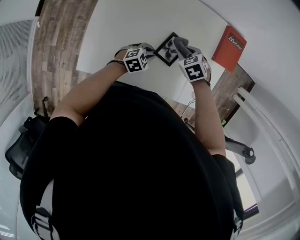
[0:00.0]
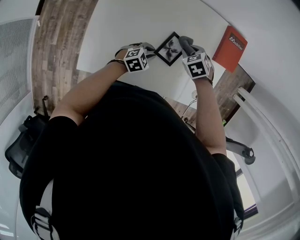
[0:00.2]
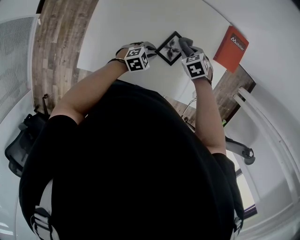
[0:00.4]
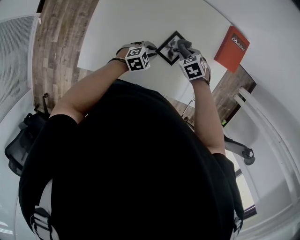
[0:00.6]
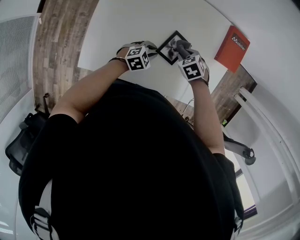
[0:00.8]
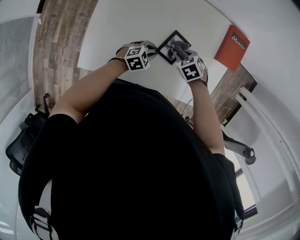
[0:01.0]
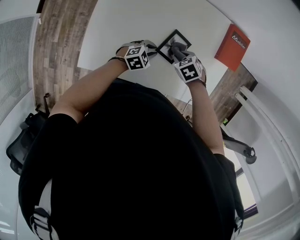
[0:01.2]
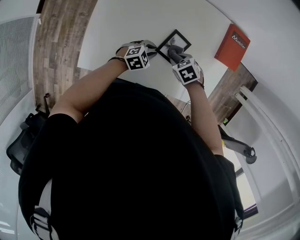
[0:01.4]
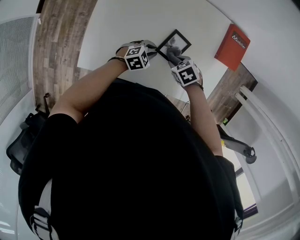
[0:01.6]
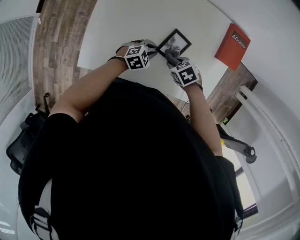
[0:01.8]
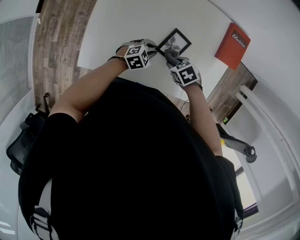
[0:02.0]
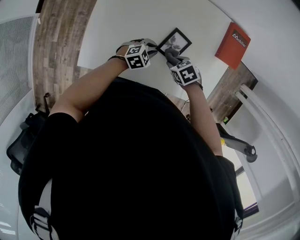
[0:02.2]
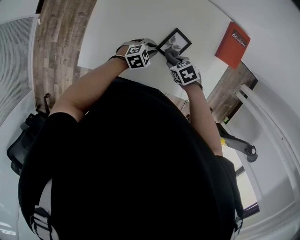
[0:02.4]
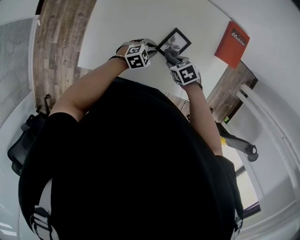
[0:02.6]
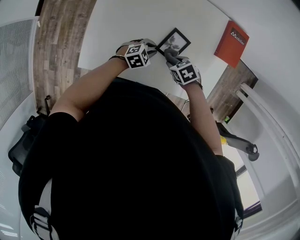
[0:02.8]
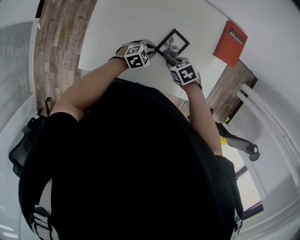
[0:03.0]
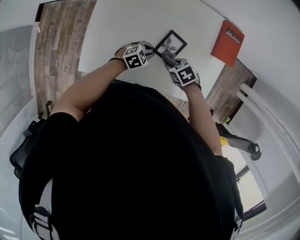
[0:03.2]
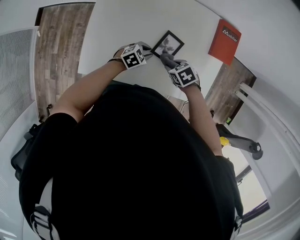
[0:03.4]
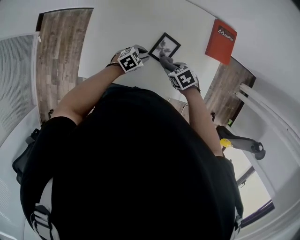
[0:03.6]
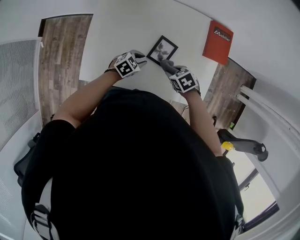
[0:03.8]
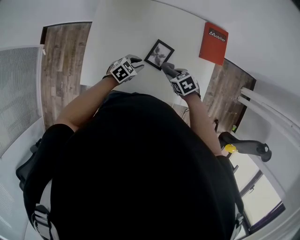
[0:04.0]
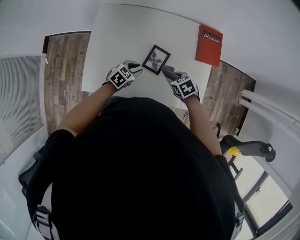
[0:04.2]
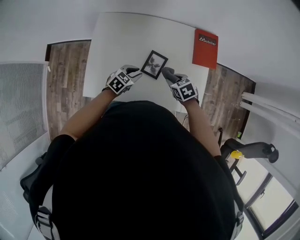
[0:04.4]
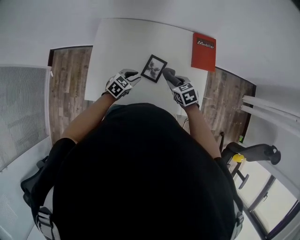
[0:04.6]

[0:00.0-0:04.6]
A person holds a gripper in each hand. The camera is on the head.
0:00.0 to 0:01.6: The right gripper ends up approximately 10 cm from where it was.
0:01.6 to 0:03.0: The grippers make only small movements.
0:03.0 to 0:04.6: The grippers both shift upward by approximately 10 cm. The right gripper rotates about 30 degrees.

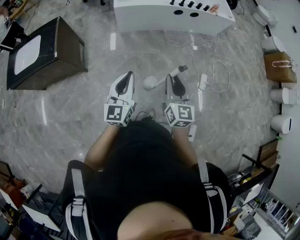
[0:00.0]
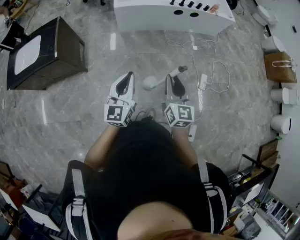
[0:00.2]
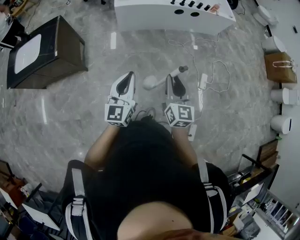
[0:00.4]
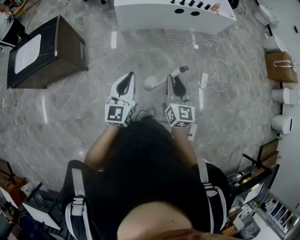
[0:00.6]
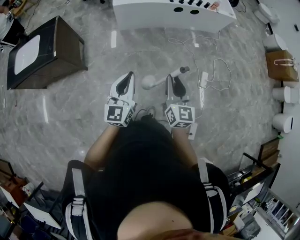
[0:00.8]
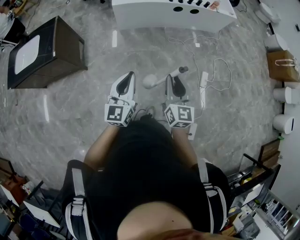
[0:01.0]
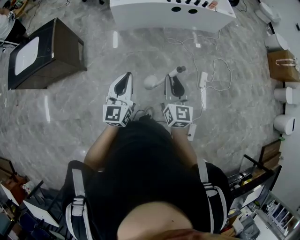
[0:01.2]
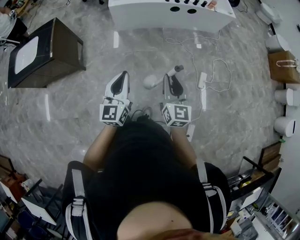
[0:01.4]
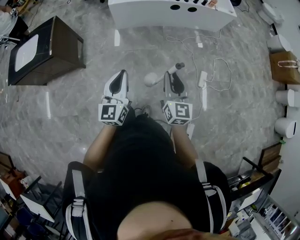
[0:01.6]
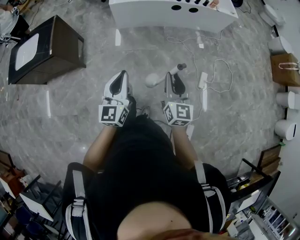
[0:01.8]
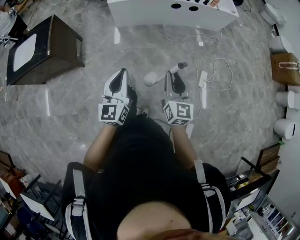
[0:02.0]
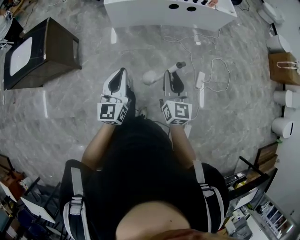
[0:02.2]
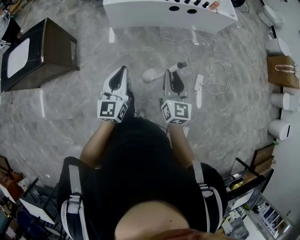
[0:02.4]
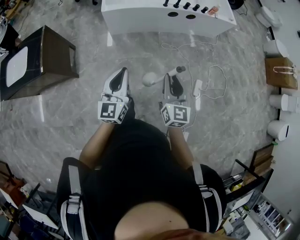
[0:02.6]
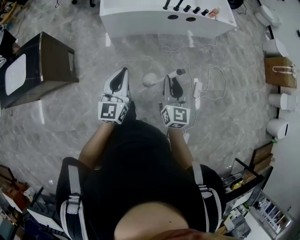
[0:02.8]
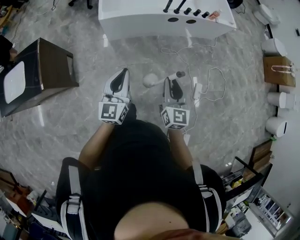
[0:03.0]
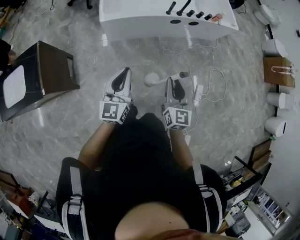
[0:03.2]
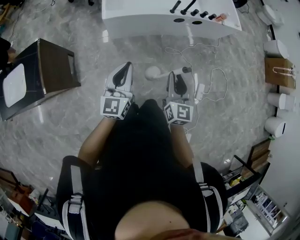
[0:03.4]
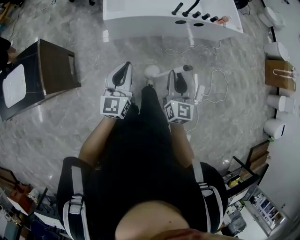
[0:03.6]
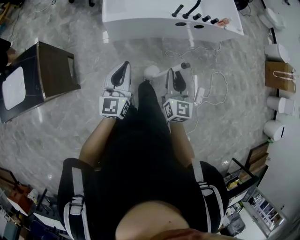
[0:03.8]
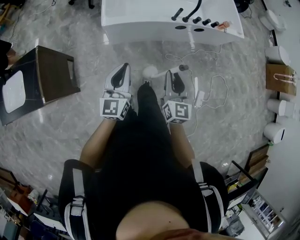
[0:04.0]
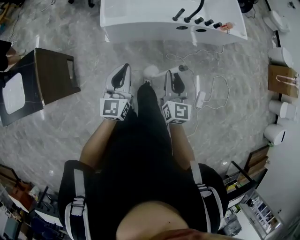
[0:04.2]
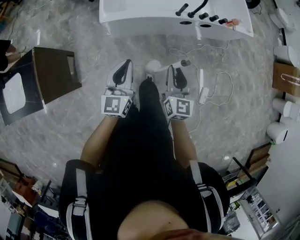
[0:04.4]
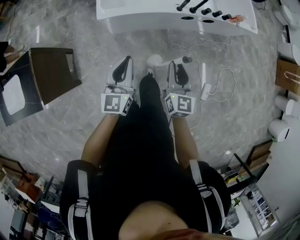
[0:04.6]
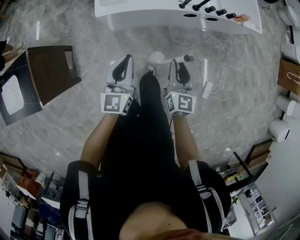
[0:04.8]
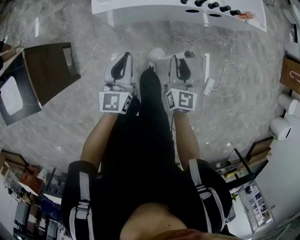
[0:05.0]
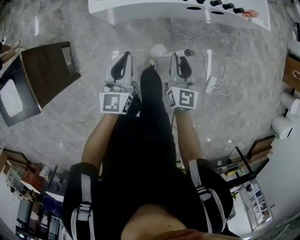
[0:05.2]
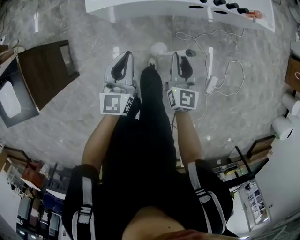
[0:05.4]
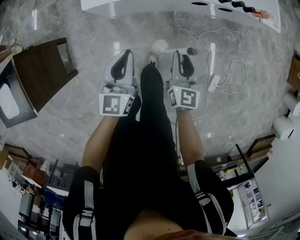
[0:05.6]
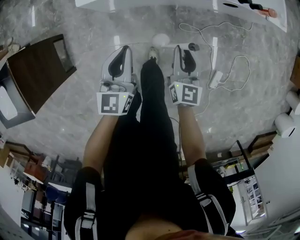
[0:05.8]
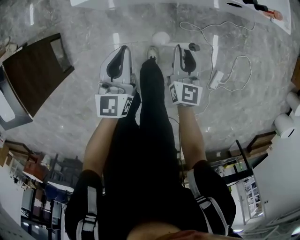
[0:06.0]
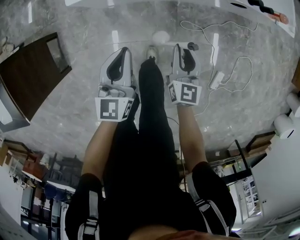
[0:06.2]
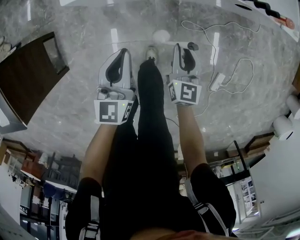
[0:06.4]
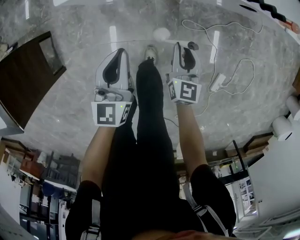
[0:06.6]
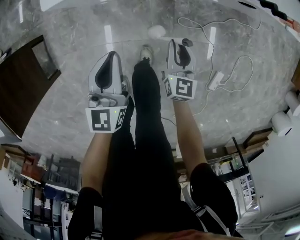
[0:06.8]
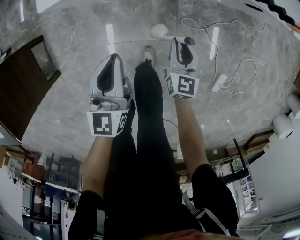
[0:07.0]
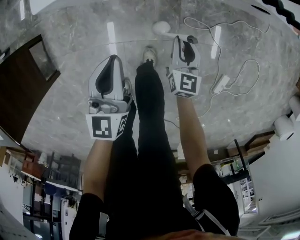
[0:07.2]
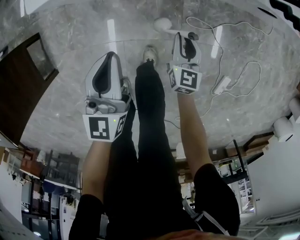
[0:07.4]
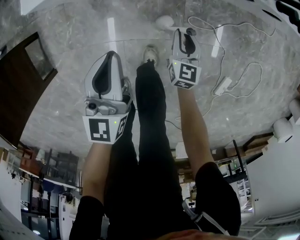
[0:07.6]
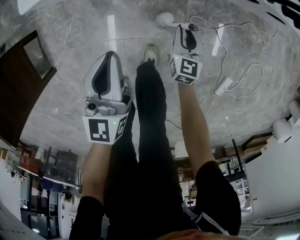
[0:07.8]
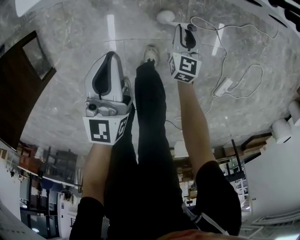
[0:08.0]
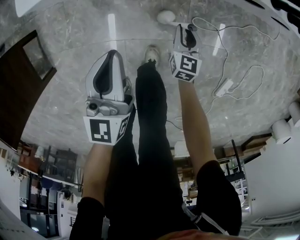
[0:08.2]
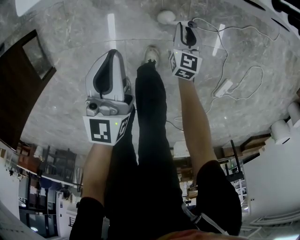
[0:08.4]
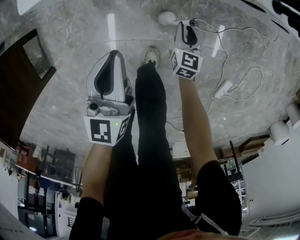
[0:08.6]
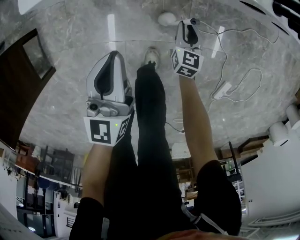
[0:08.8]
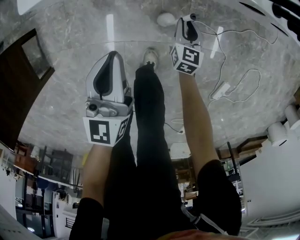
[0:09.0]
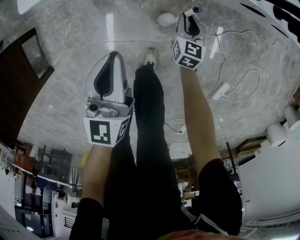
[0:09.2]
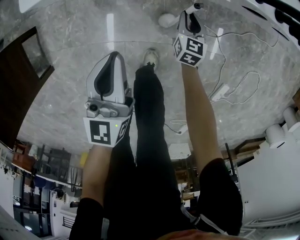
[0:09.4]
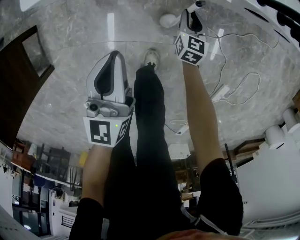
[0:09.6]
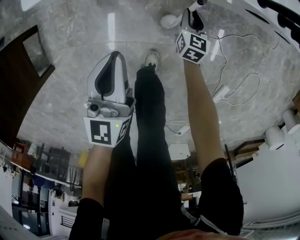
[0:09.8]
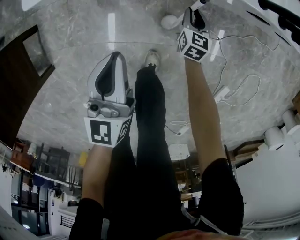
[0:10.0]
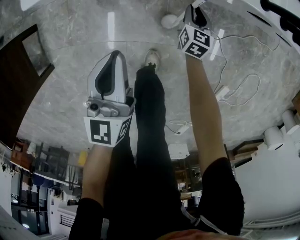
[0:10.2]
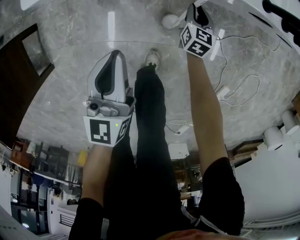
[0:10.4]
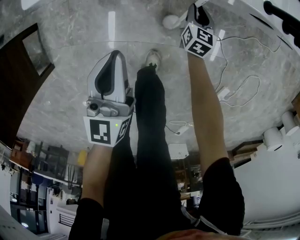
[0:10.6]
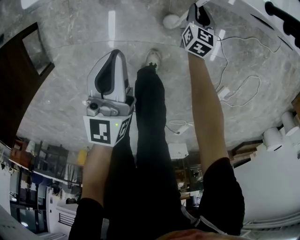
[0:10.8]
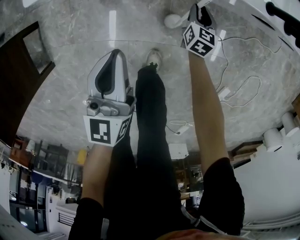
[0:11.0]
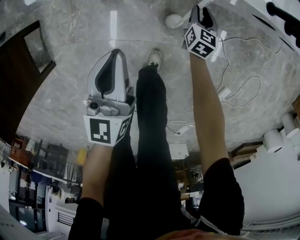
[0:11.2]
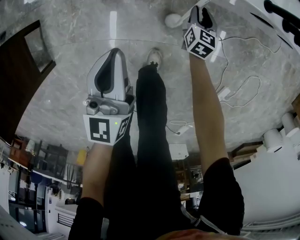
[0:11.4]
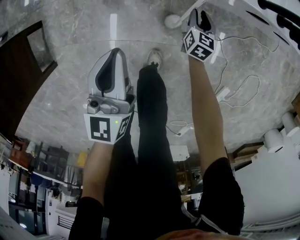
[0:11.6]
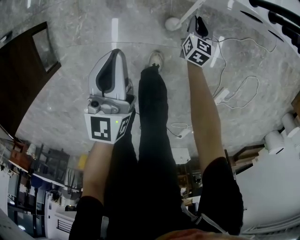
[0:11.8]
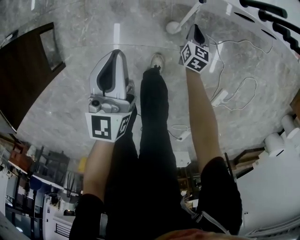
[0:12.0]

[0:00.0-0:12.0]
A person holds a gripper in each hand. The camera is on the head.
0:00.0 to 0:01.6: Both grippers move to the right, roughly 10 cm.
0:01.6 to 0:03.0: The two grippers go about 25 cm forward.
0:03.0 to 0:04.4: The grippers both shift forward by roughly 20 cm.
0:04.4 to 0:06.0: Both grippers move downward and forward, about 25 cm.
0:06.0 to 0:07.6: The right gripper shifts approximately 35 cm downward; the left gripper heads downward, covering about 20 cm.
0:07.6 to 0:09.0: The right gripper is displaced downward and forward by some 10 cm.
0:09.0 to 0:10.4: The right gripper is displaced forward by roughly 10 cm.
0:10.4 to 0:12.0: The left gripper shifts approximately 10 cm upward. The right gripper travels upward and backward by about 10 cm.

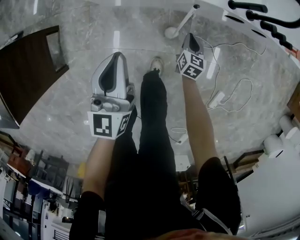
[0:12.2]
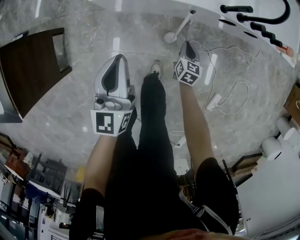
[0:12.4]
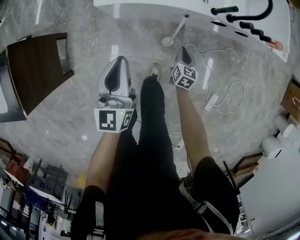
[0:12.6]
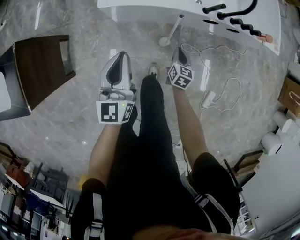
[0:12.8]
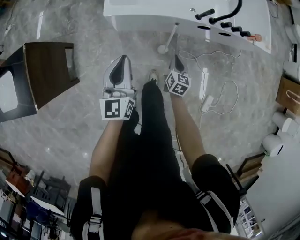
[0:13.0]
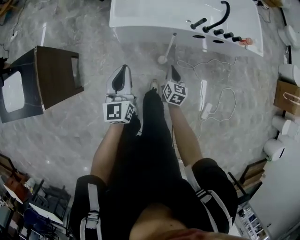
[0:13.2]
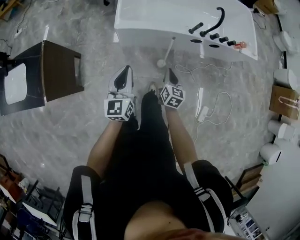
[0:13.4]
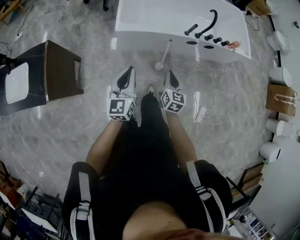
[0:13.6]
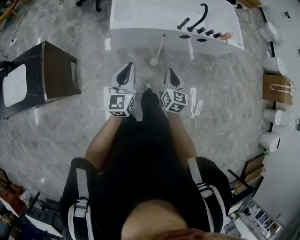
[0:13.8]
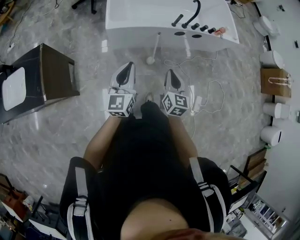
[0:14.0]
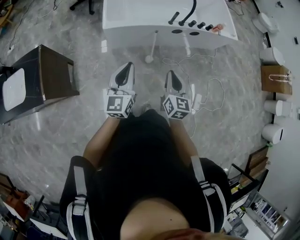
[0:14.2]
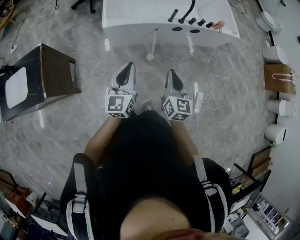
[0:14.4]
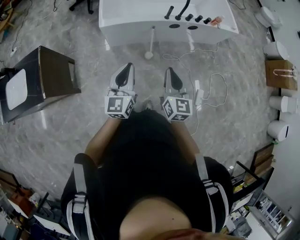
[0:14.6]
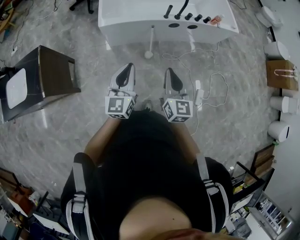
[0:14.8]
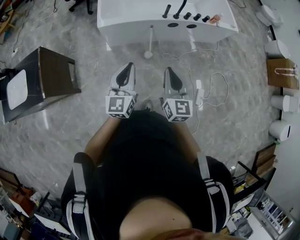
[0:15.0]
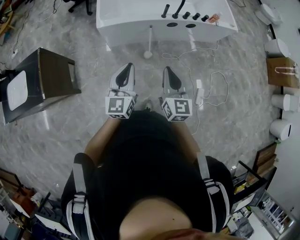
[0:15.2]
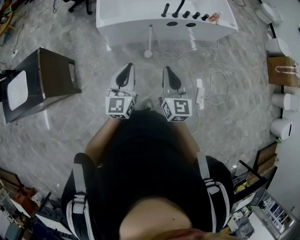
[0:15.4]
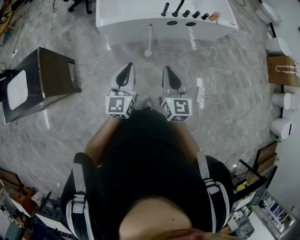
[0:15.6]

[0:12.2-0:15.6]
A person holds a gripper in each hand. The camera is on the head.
0:12.2 to 0:13.8: The left gripper travels upward and backward by roughly 35 cm, while the right gripper is displaced upward and backward by roughly 60 cm, and changes its angle by roughly 20 degrees.
0:13.8 to 0:15.6: The right gripper goes about 20 cm upward, backward and to the right. Meanwhile the left gripper shifts some 15 cm to the right and backward.

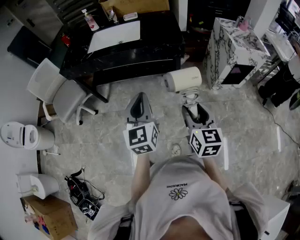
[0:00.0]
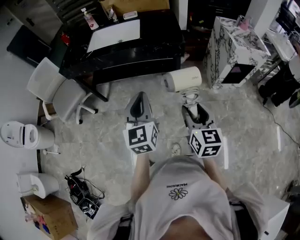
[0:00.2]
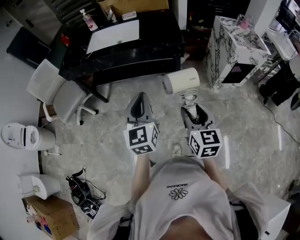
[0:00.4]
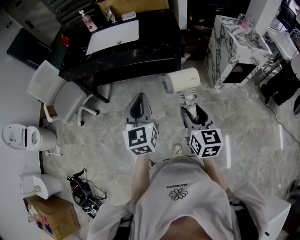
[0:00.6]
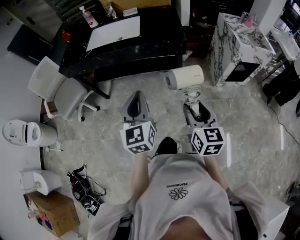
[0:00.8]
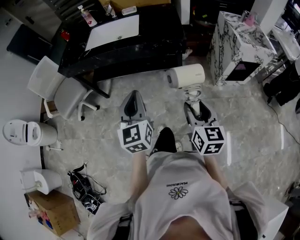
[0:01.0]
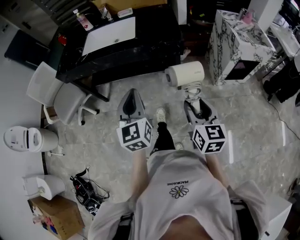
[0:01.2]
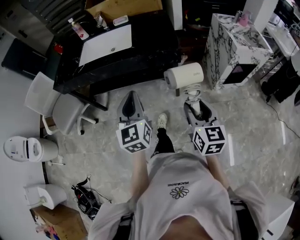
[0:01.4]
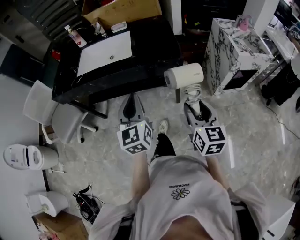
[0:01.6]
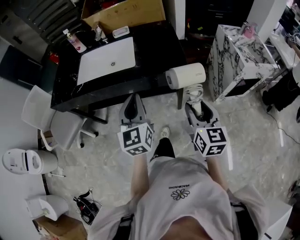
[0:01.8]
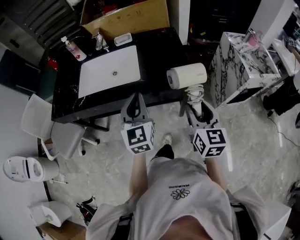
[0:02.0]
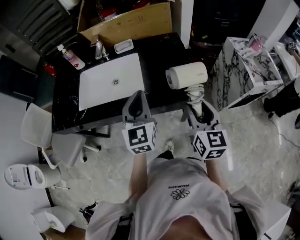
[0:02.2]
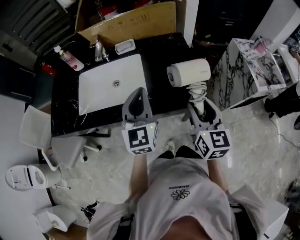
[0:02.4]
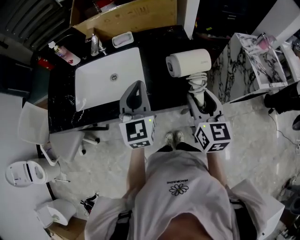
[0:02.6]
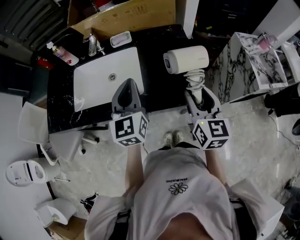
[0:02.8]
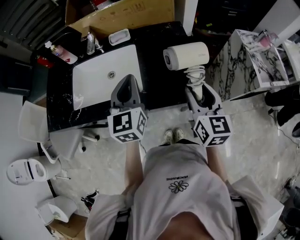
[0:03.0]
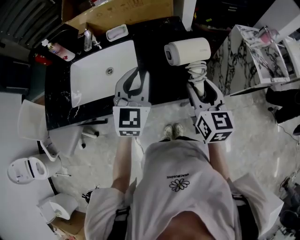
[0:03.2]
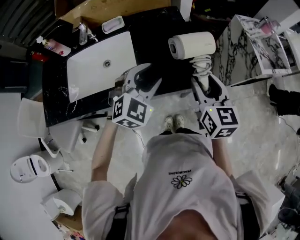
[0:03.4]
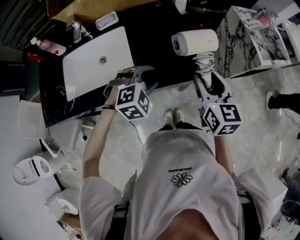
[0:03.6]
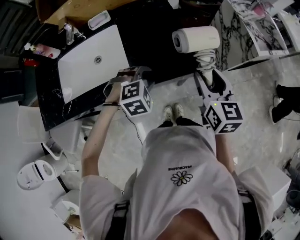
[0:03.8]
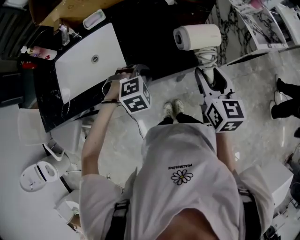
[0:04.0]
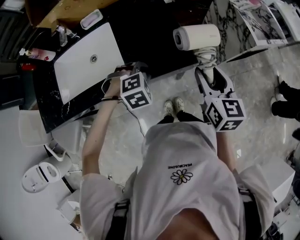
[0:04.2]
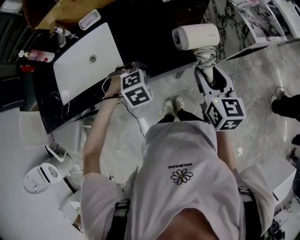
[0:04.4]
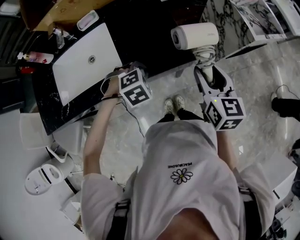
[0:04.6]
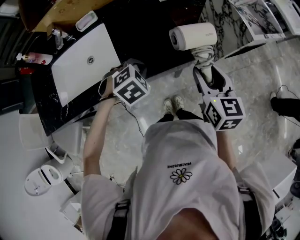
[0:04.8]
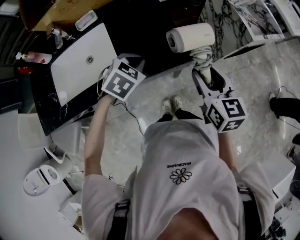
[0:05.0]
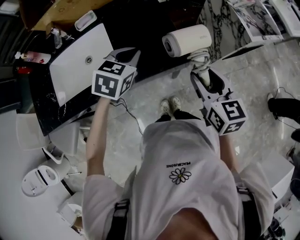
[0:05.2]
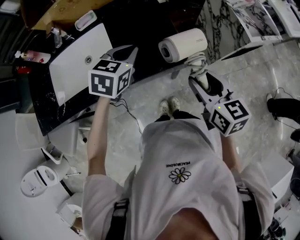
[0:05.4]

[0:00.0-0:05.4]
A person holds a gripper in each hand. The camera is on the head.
0:00.0 to 0:01.4: The two grippers go about 10 cm forward.
0:01.4 to 0:02.8: The two grippers travel together, forward, about 40 cm.
0:02.8 to 0:04.0: The left gripper travels downward and to the right by approximately 25 cm, tilts its fingers about 60 degrees downward, and opens, then closes again. Meanwhile the right gripper is displaced to the right by some 10 cm.
0:04.0 to 0:05.4: The left gripper heads upward and forward, covering about 15 cm, and rotates around the line of its fingers by about 50 degrees, counterclockwise from behind.
